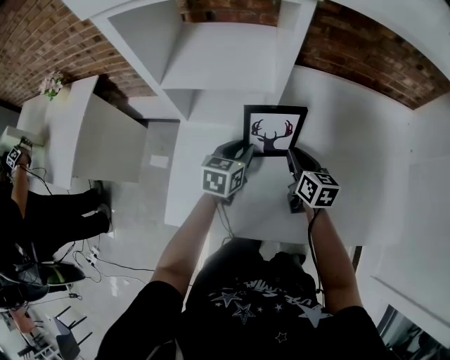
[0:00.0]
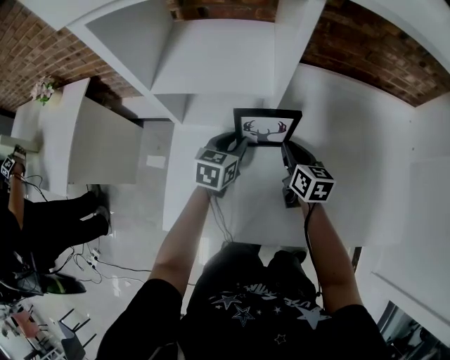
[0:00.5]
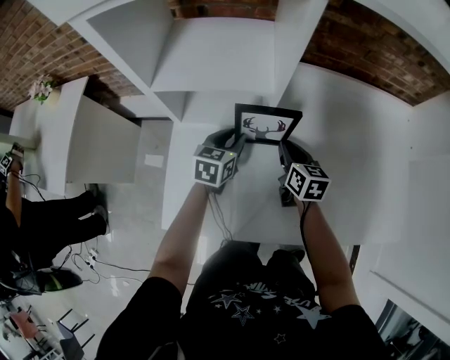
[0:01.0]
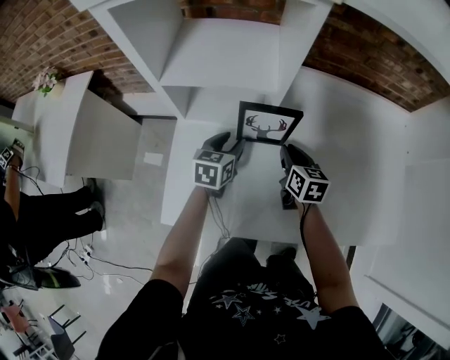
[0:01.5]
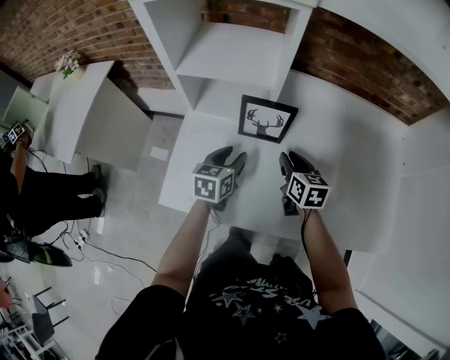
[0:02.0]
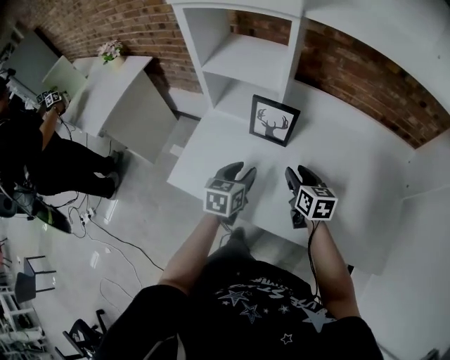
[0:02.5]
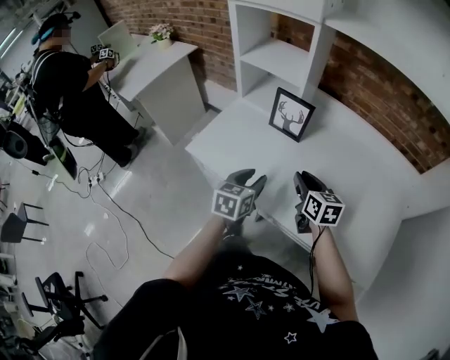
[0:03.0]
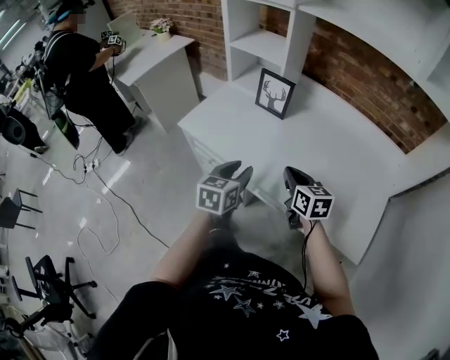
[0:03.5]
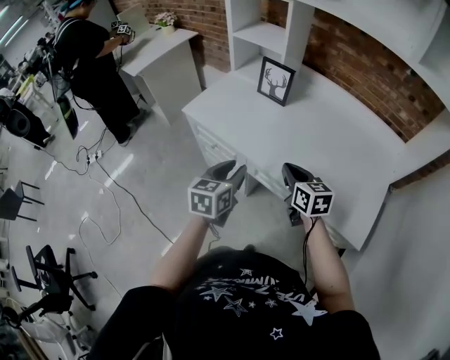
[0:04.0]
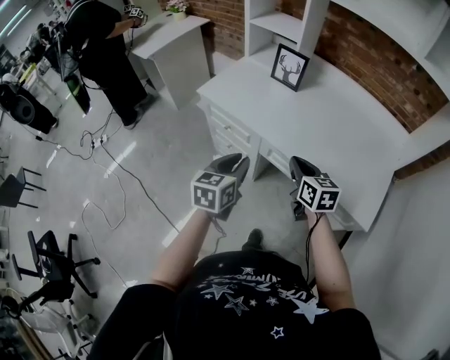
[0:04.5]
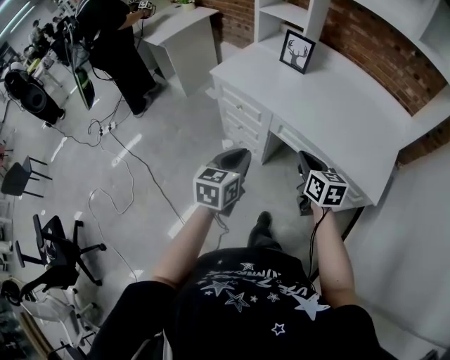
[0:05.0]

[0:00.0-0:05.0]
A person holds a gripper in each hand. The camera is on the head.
0:00.0 to 0:02.5: The left gripper heads backward, covering approximately 15 cm. The right gripper is displaced backward by roughly 5 cm, and opens up.
0:02.5 to 0:05.0: Both grippers move backward, roughly 40 cm. The left gripper closes its fingers; the right gripper closes.

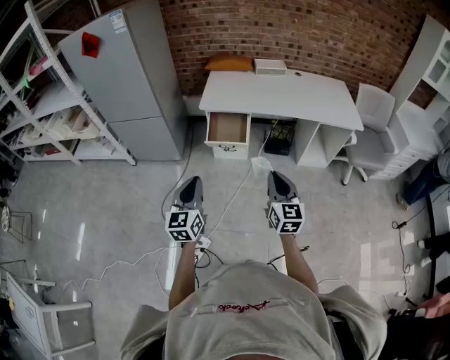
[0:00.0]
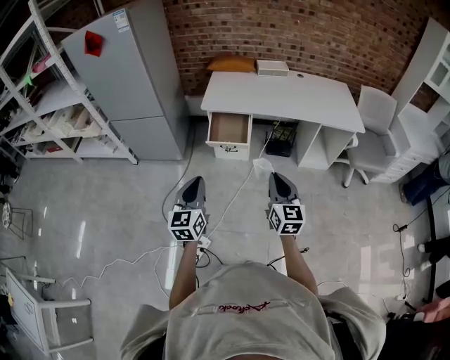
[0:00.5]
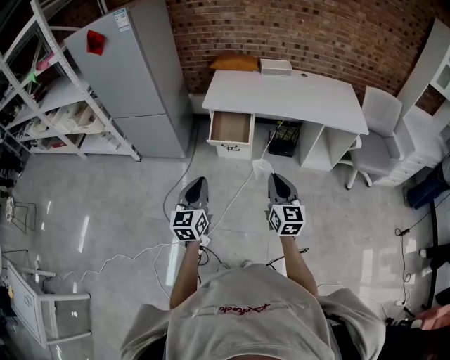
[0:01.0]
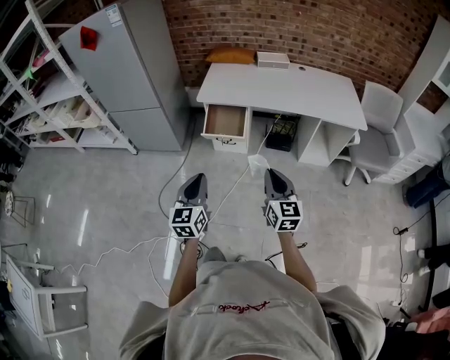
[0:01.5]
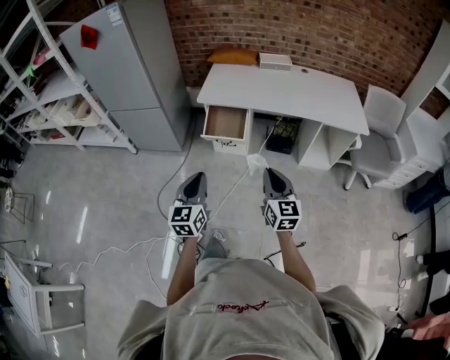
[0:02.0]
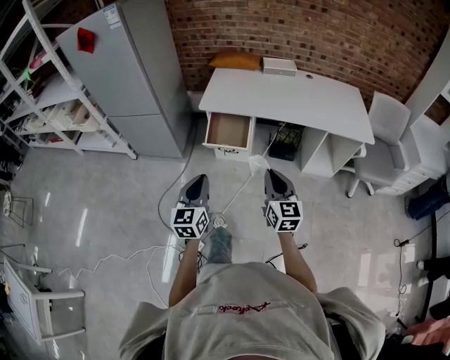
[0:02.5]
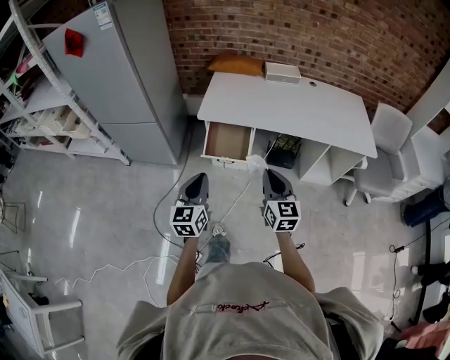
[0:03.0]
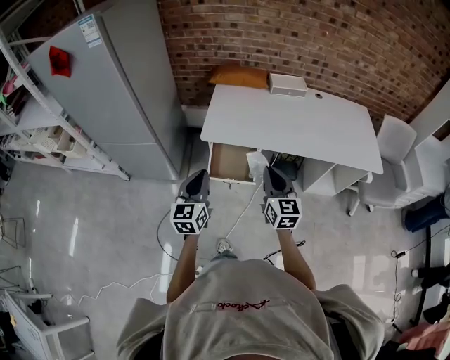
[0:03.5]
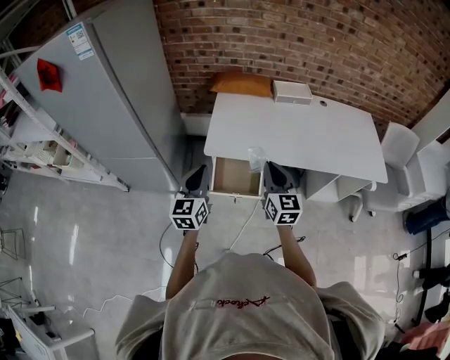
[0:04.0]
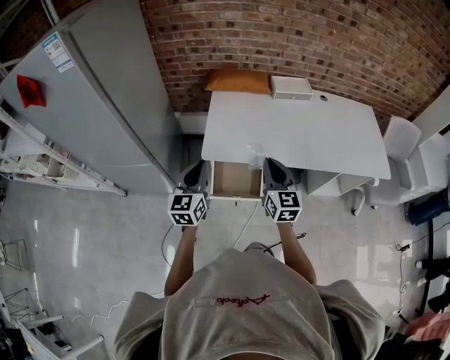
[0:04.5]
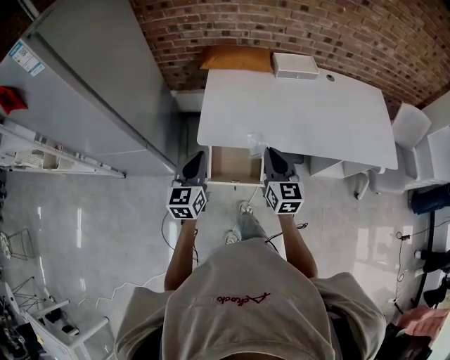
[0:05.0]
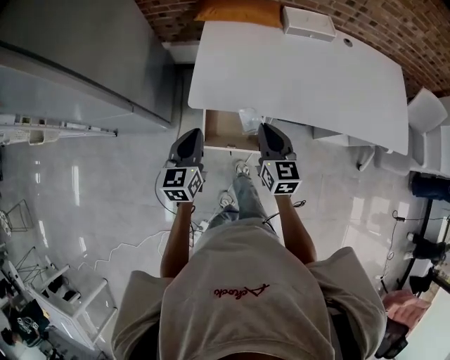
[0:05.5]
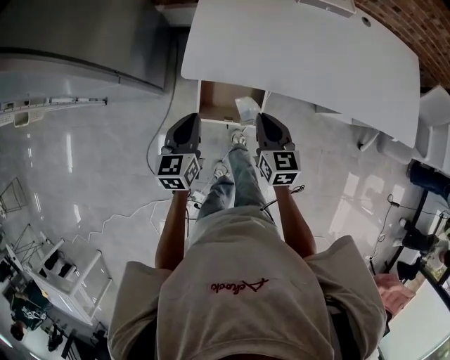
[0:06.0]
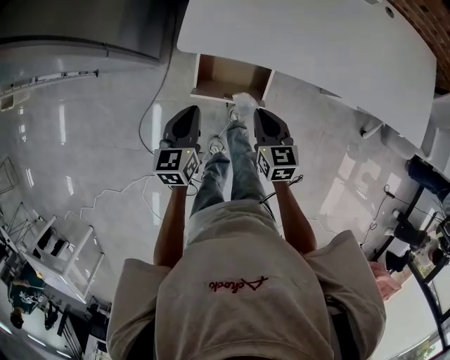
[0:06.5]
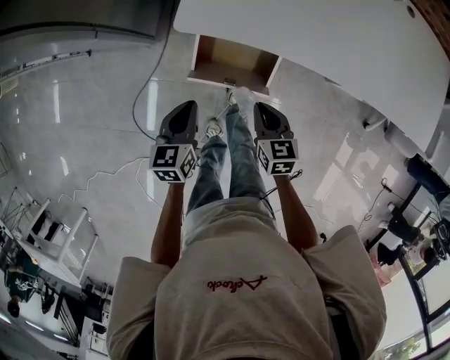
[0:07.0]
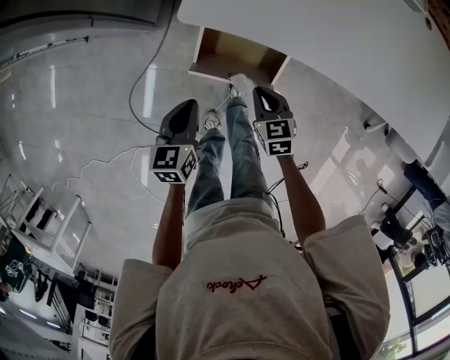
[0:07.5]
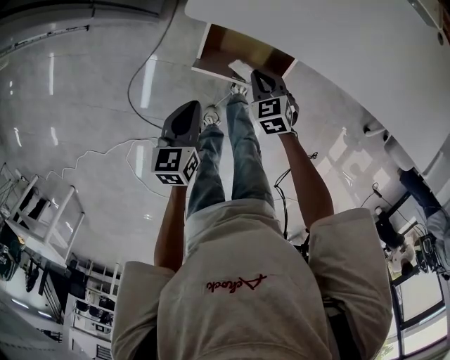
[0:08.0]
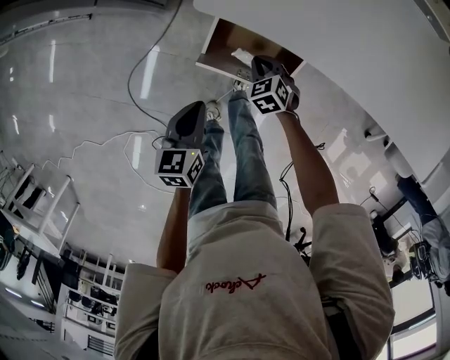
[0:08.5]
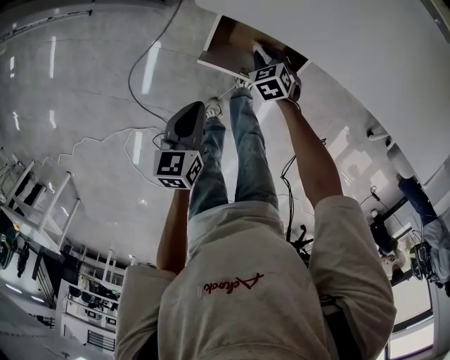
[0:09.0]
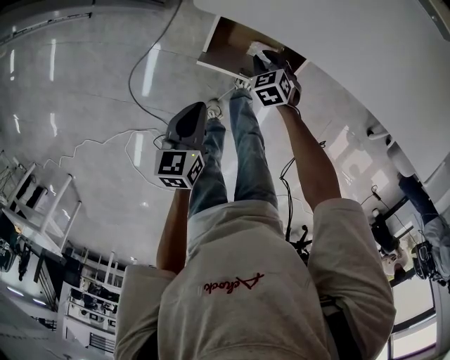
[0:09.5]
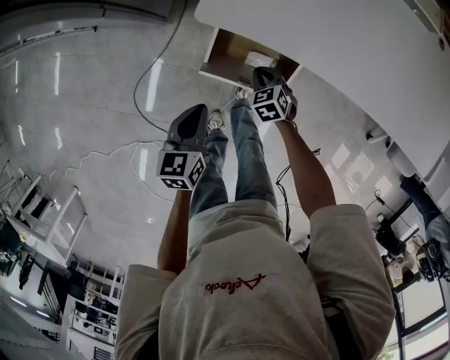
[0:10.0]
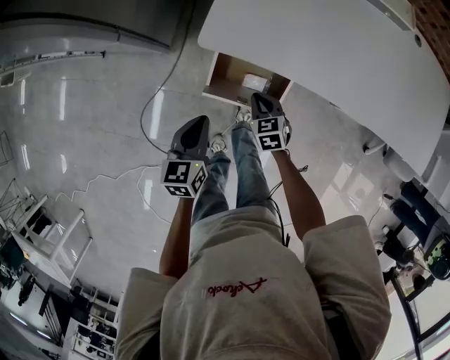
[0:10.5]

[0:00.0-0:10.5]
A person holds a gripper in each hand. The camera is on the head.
0:00.0 to 0:02.0: The left gripper moves to the right, some 10 cm. Meanwhile the right gripper is displaced to the right by about 5 cm.
0:02.0 to 0:04.0: The pair of grippers is taken forward, about 40 cm.
0:04.0 to 0:06.5: The grippers both shift downward by some 25 cm. The right gripper tips its fingers downward by approximately 30 degrees. Meanwhile the left gripper rotates some 30 degrees.
0:06.5 to 0:08.5: The right gripper is displaced downward by some 20 cm, and swivels some 50 degrees. The left gripper goes roughly 10 cm downward.
0:08.5 to 0:10.5: The two grippers go approximately 10 cm upward. The right gripper turns by about 20 degrees.

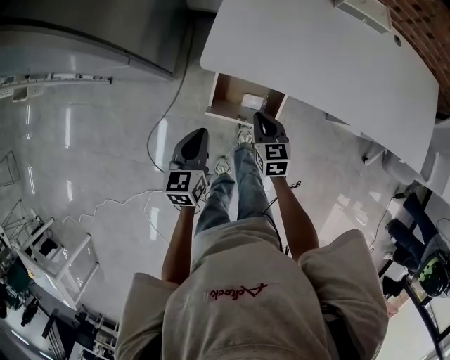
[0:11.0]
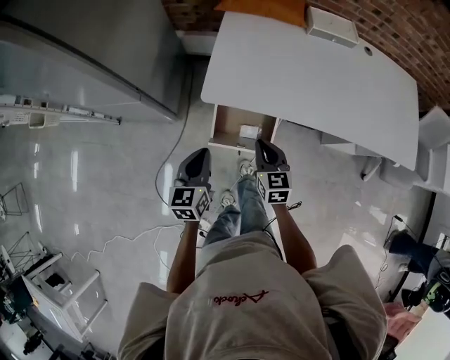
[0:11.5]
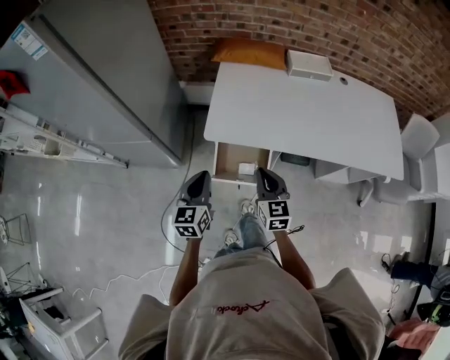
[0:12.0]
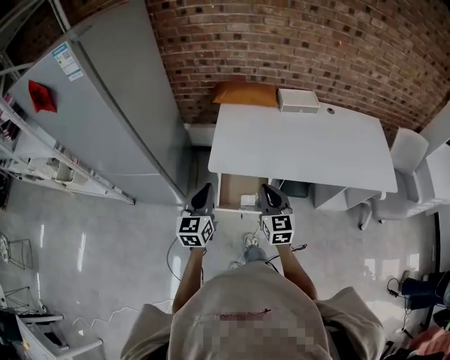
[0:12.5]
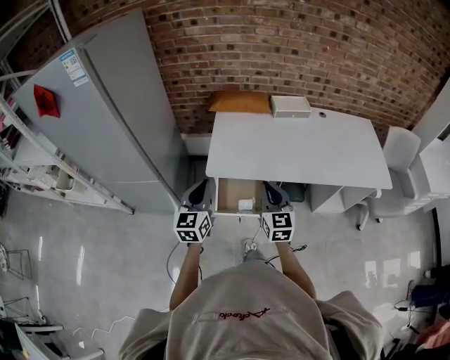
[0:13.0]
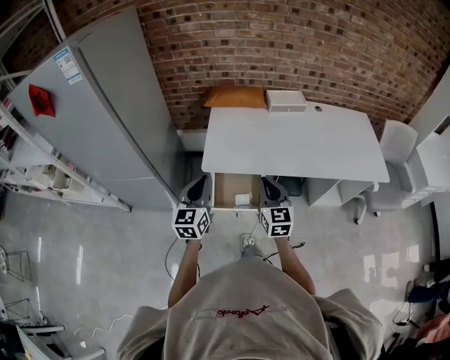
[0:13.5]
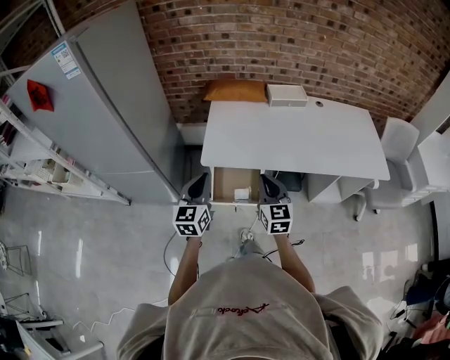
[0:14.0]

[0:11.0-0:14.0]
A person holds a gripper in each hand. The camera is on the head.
0:11.0 to 0:12.5: The grippers both shift upward by roughly 20 cm. The right gripper turns by roughly 30 degrees. Meanwhile the left gripper turns by approximately 30 degrees.
0:12.5 to 0:14.0: The grippers move only a little.

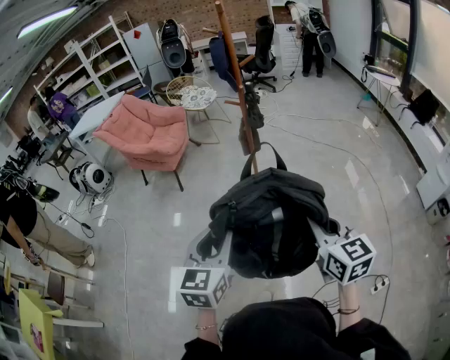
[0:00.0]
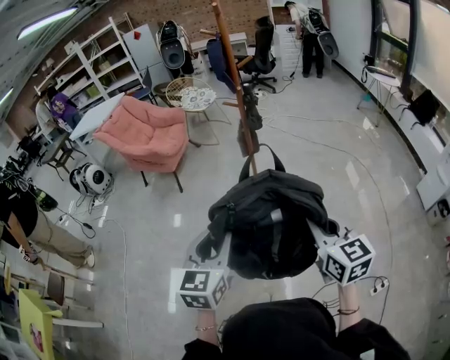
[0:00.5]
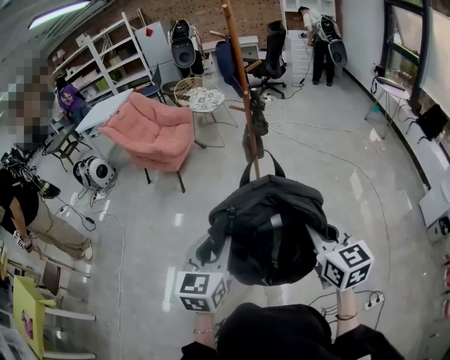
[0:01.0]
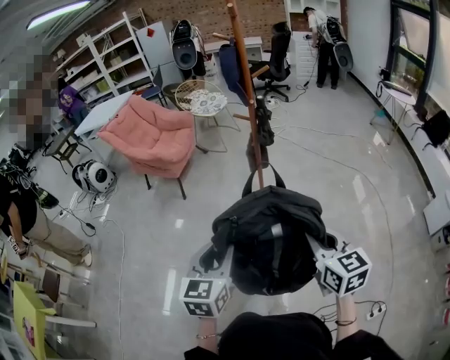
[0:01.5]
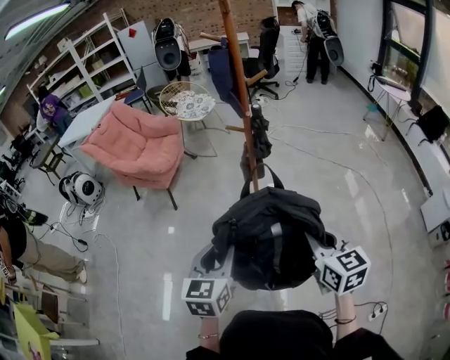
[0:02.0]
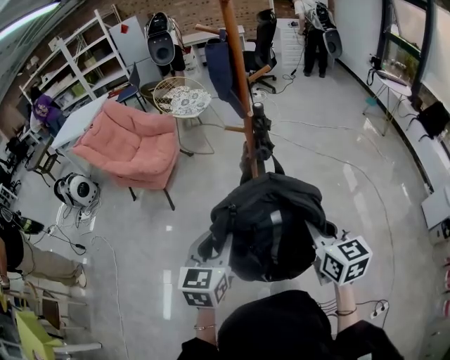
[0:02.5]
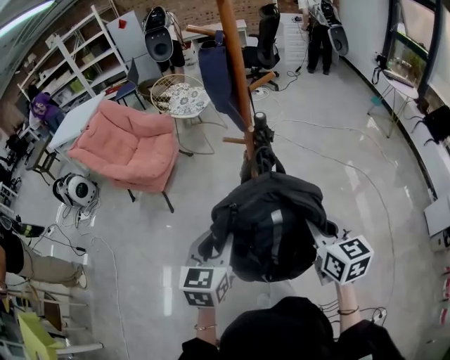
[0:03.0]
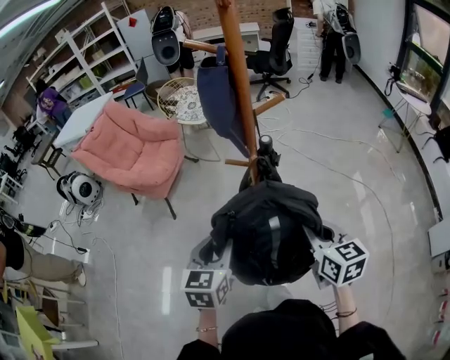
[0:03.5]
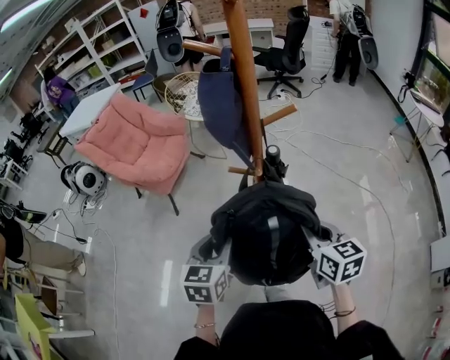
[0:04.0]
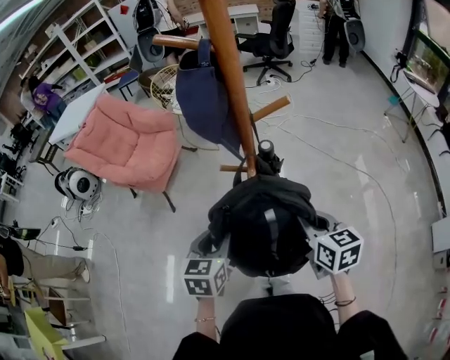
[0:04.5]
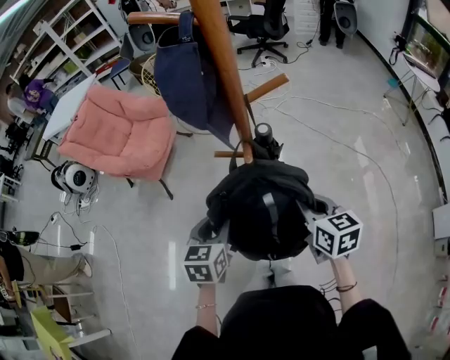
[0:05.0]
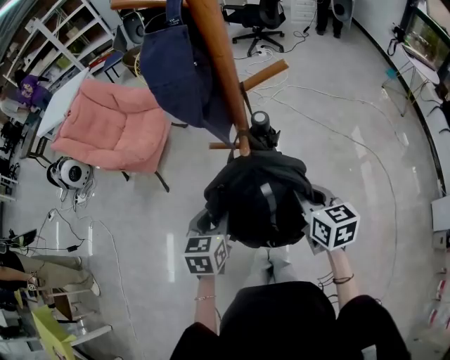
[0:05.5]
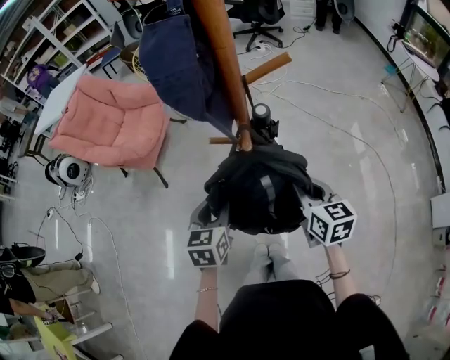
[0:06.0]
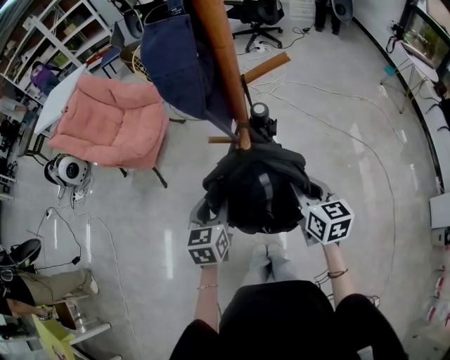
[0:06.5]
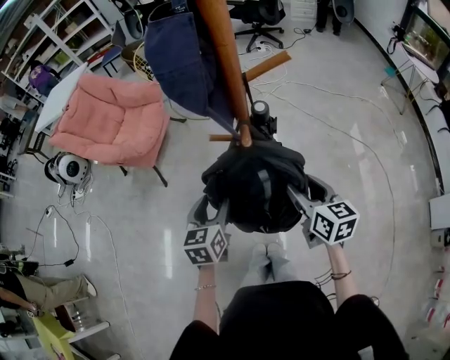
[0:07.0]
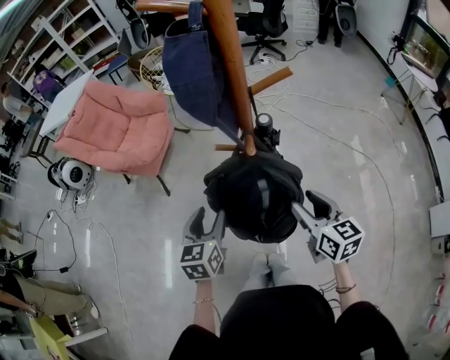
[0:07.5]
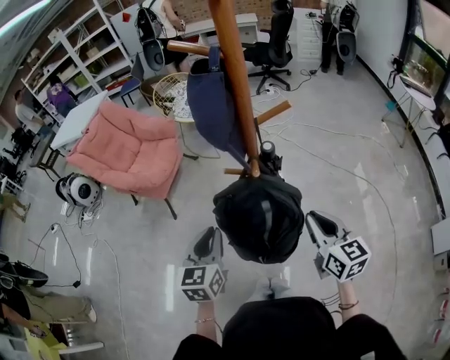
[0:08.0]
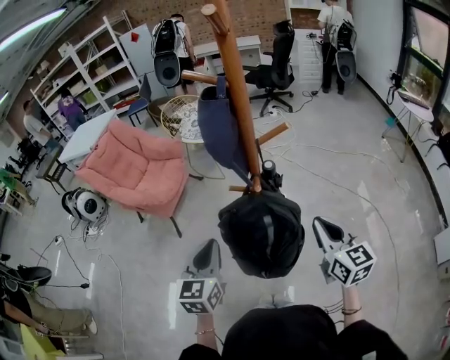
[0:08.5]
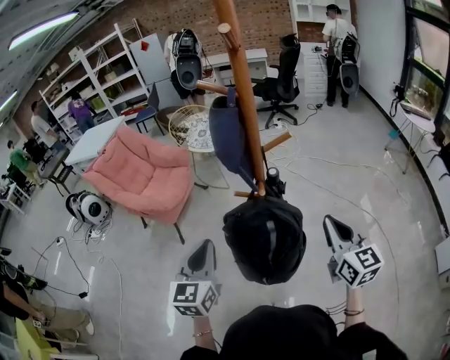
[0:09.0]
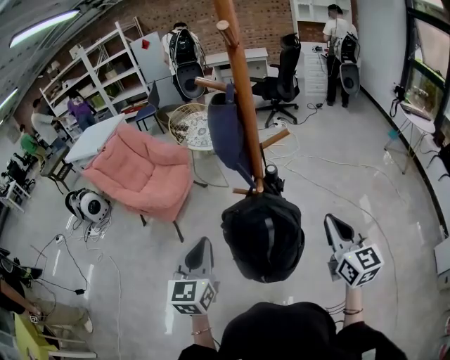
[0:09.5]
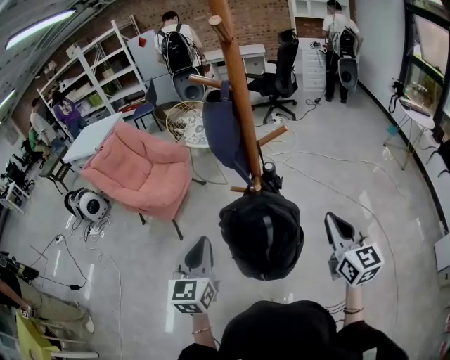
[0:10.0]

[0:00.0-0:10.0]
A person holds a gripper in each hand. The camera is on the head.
0:00.0 to 0:02.0: The two grippers go about 20 cm forward.
0:02.0 to 0:04.0: Both grippers travel together forward, roughly 30 cm.
0:04.0 to 0:06.0: Both grippers travel together downward and forward, approximately 10 cm.
0:06.0 to 0:08.0: The right gripper travels upward and backward by approximately 10 cm, and opens, then closes once more. The left gripper heads upward, covering about 10 cm, and opens and closes again.
0:08.0 to 0:10.0: Both grippers travel together upward, some 10 cm.
